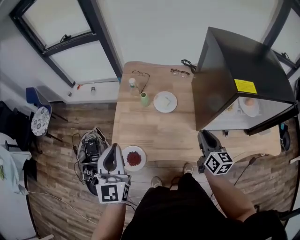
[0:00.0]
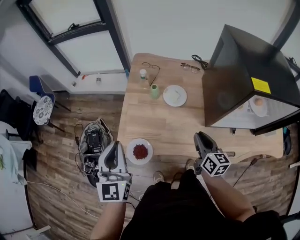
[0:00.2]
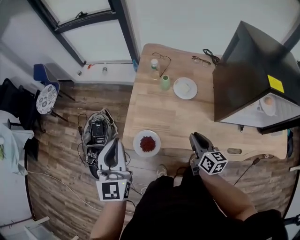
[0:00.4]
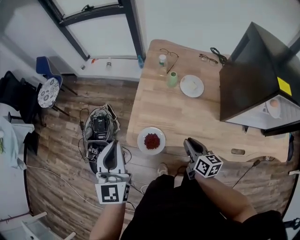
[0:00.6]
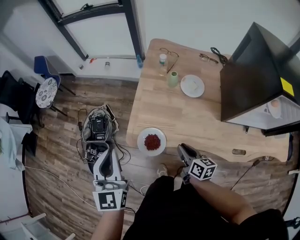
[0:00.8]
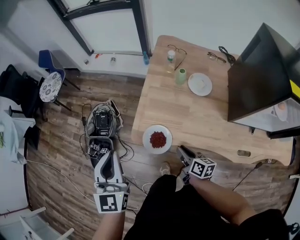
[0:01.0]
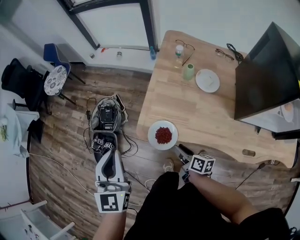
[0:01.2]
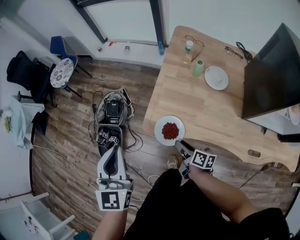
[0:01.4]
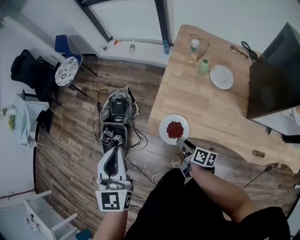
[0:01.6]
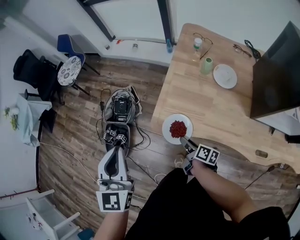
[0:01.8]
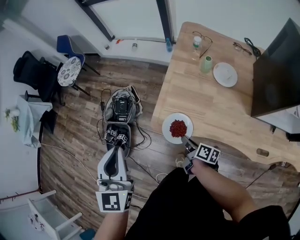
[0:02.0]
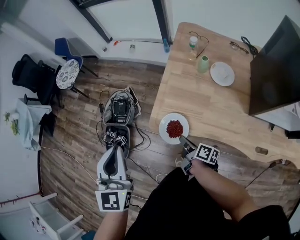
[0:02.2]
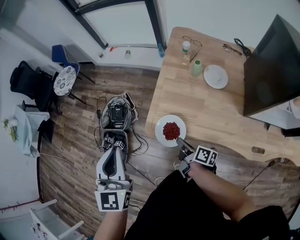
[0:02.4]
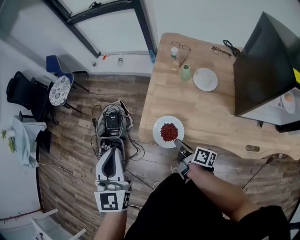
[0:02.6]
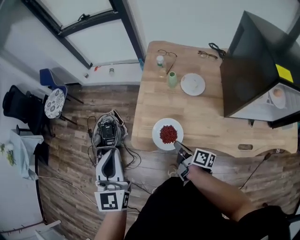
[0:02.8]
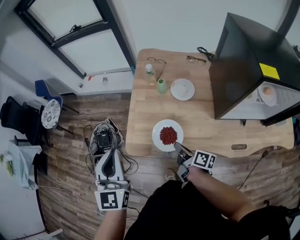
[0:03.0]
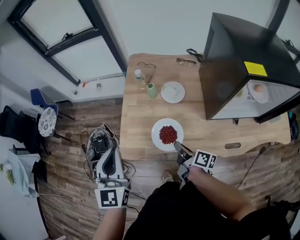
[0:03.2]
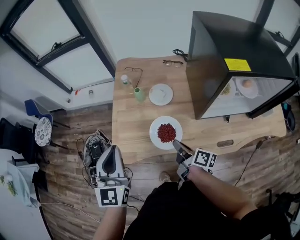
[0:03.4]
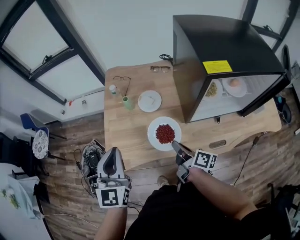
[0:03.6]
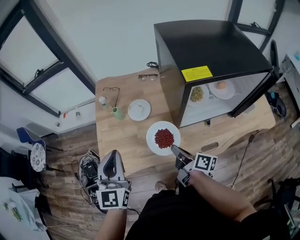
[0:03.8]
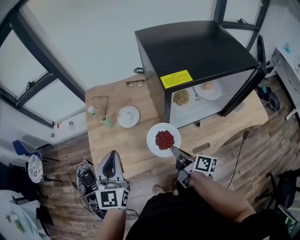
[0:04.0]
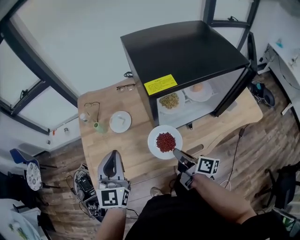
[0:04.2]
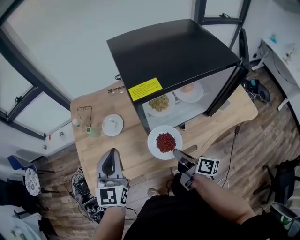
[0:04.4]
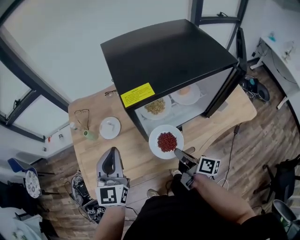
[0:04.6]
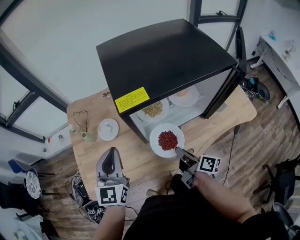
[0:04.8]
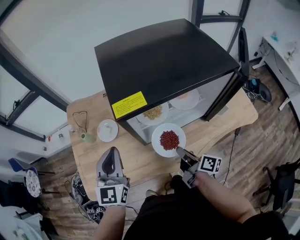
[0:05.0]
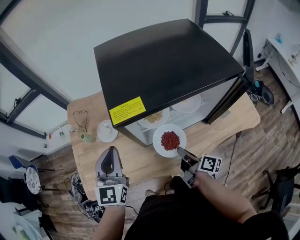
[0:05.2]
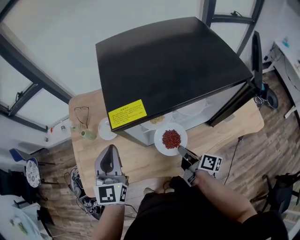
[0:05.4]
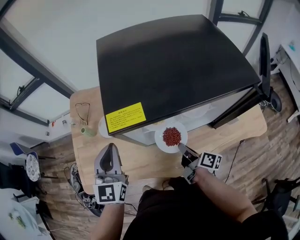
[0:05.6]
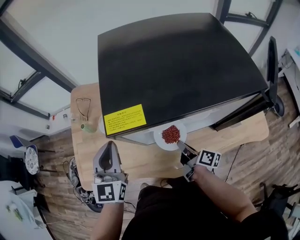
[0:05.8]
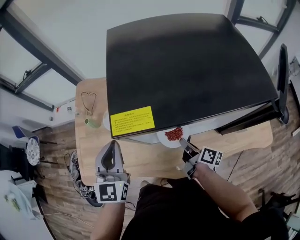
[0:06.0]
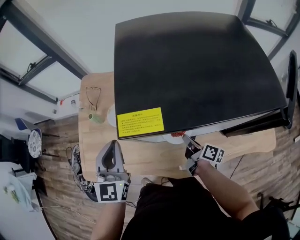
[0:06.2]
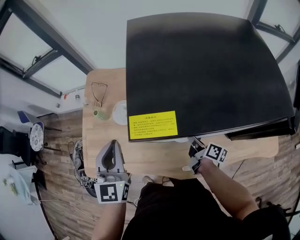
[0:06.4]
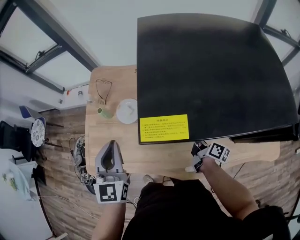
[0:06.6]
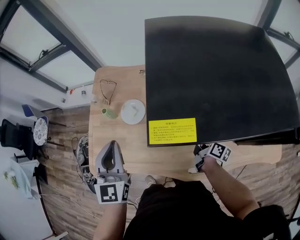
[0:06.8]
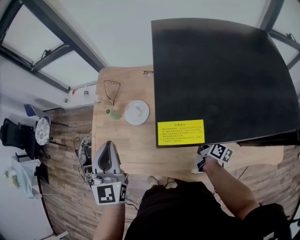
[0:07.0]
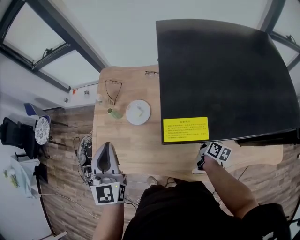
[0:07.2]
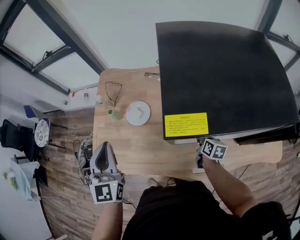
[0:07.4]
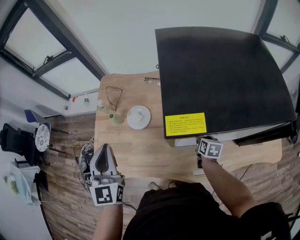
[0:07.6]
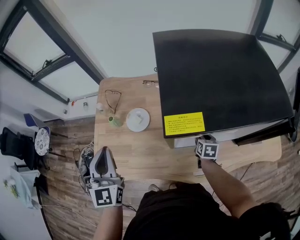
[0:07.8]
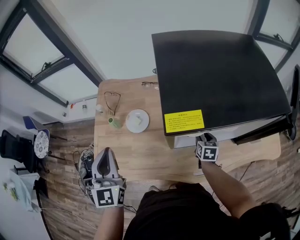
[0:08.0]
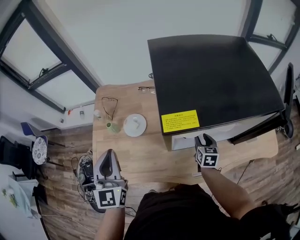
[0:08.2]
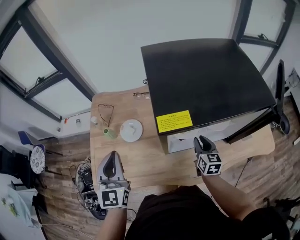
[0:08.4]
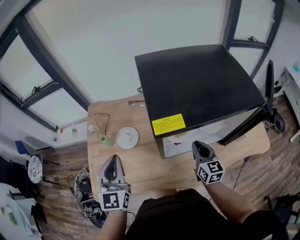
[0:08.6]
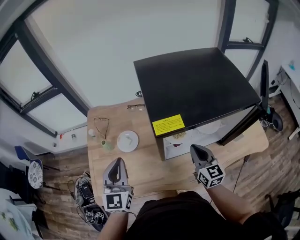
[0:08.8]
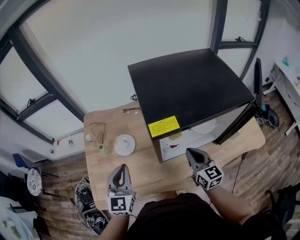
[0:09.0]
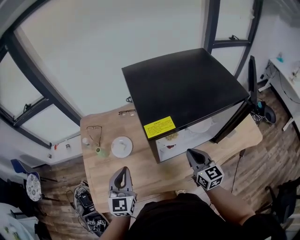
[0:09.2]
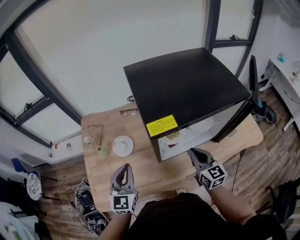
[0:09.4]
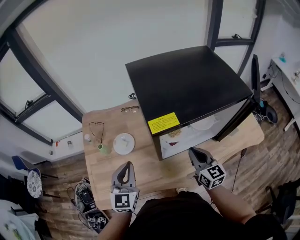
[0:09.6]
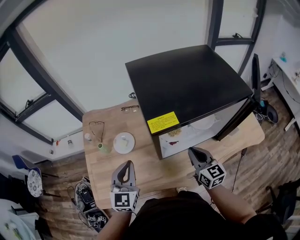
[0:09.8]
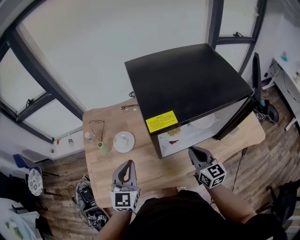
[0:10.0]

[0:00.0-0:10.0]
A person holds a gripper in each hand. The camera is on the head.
0:00.0 to 0:01.4: The right gripper moves roughly 35 cm, and changes its angle by roughly 50 degrees. Meanwhile the left gripper moves roughly 20 cm.
0:01.4 to 0:02.8: The left gripper shifts about 5 cm to the right, while the right gripper travels upward and to the right by approximately 10 cm, and closes.
0:02.8 to 0:04.2: The left gripper changes place by about 30 cm, and swivels about 30 degrees; the right gripper ends up approximately 30 cm from where it was, and rotates approximately 30 degrees.
0:04.2 to 0:05.8: The right gripper moves to the right, forward and downward, approximately 15 cm; the left gripper shifts roughly 15 cm to the right and forward.
0:05.8 to 0:07.2: The left gripper is displaced to the left by roughly 15 cm. Meanwhile the right gripper heads forward and downward, covering approximately 10 cm, and changes its angle by some 20 degrees.
0:07.2 to 0:08.6: The right gripper shifts roughly 15 cm upward, swivels roughly 40 degrees, and opens, then closes again.
0:08.6 to 0:10.0: The left gripper heads to the right and downward, covering about 5 cm. Meanwhile the right gripper changes place by roughly 5 cm.

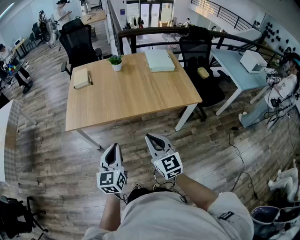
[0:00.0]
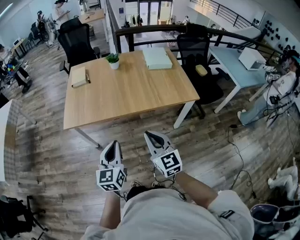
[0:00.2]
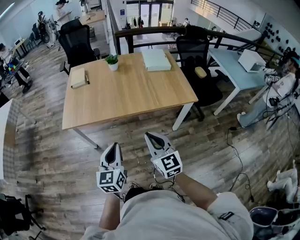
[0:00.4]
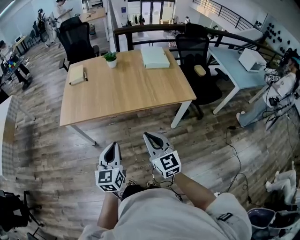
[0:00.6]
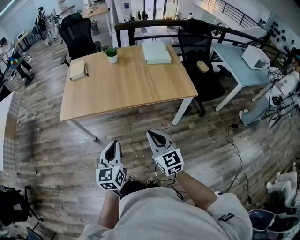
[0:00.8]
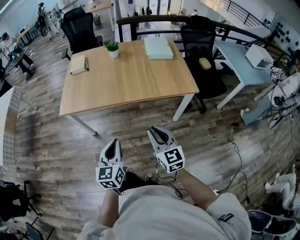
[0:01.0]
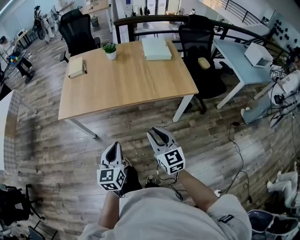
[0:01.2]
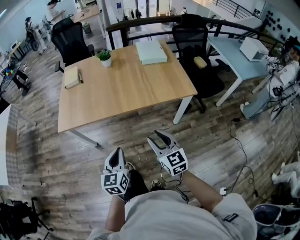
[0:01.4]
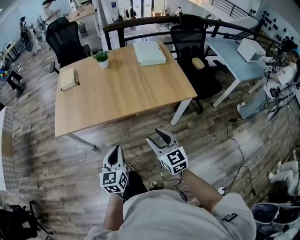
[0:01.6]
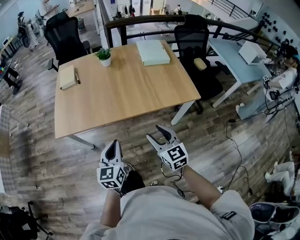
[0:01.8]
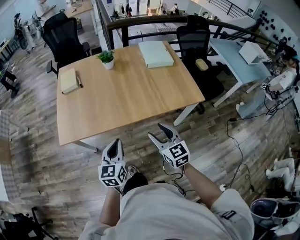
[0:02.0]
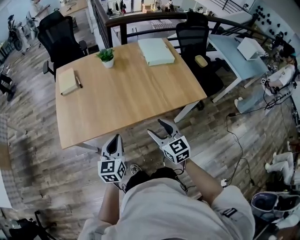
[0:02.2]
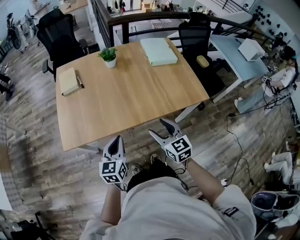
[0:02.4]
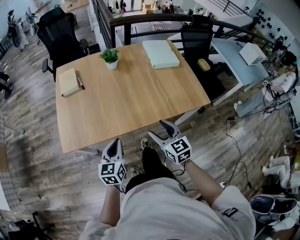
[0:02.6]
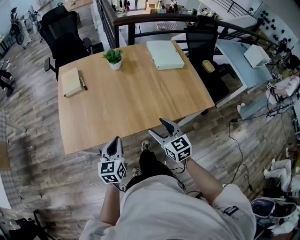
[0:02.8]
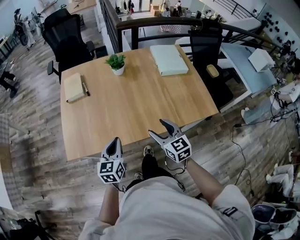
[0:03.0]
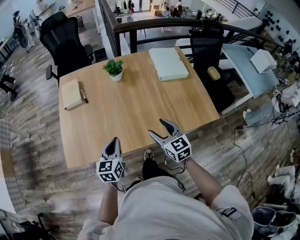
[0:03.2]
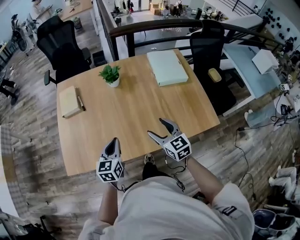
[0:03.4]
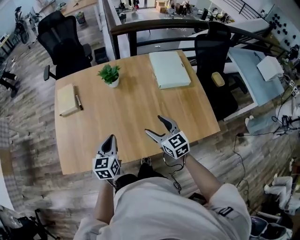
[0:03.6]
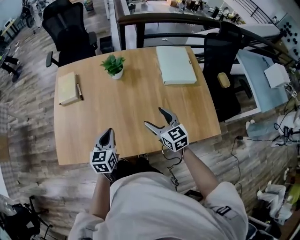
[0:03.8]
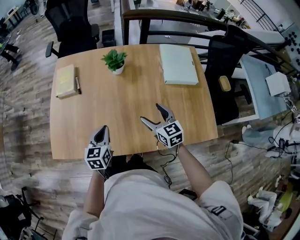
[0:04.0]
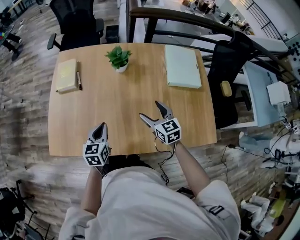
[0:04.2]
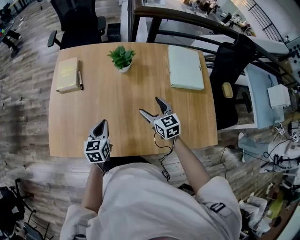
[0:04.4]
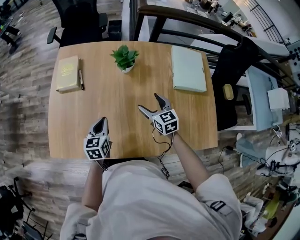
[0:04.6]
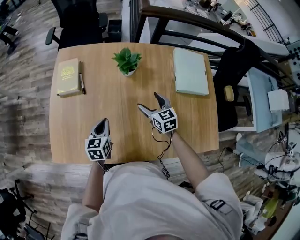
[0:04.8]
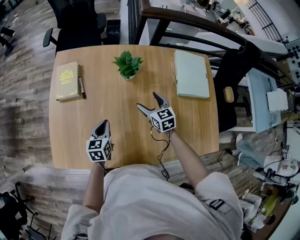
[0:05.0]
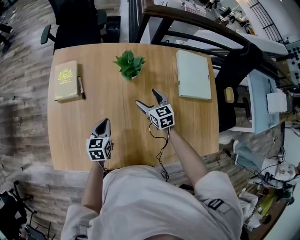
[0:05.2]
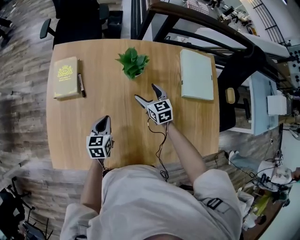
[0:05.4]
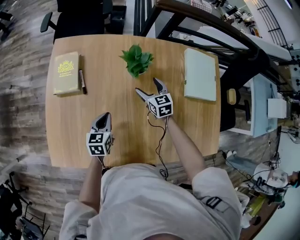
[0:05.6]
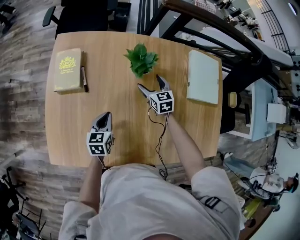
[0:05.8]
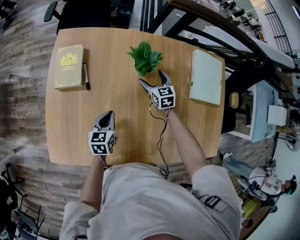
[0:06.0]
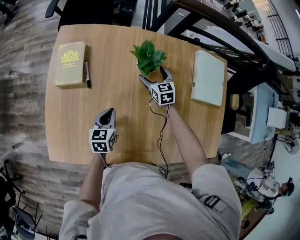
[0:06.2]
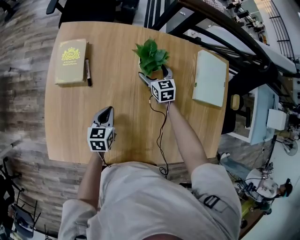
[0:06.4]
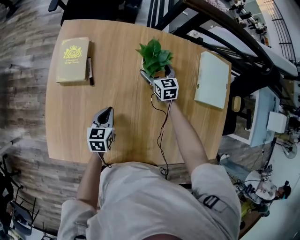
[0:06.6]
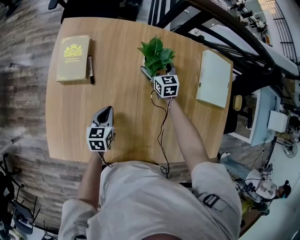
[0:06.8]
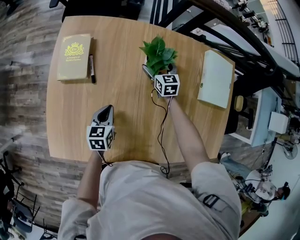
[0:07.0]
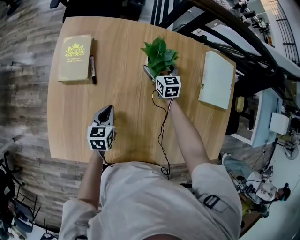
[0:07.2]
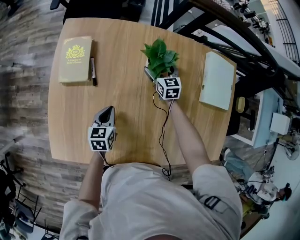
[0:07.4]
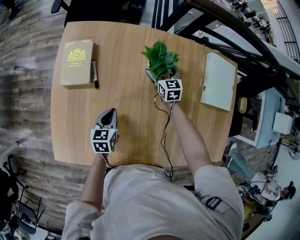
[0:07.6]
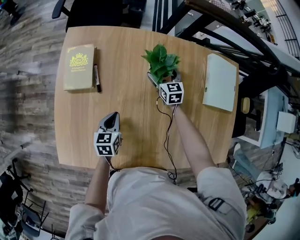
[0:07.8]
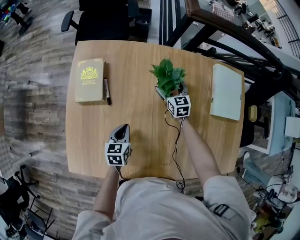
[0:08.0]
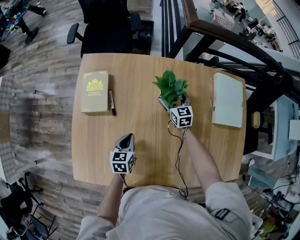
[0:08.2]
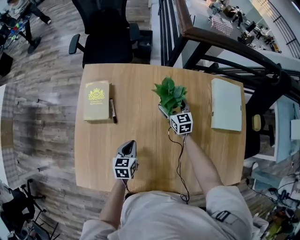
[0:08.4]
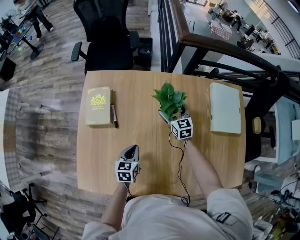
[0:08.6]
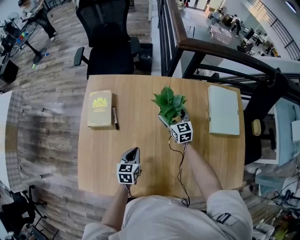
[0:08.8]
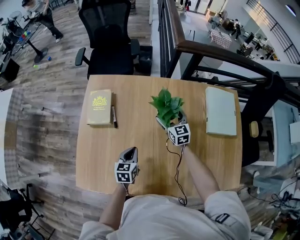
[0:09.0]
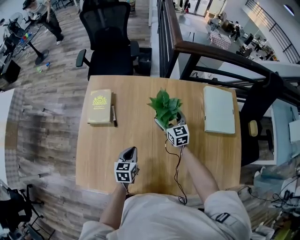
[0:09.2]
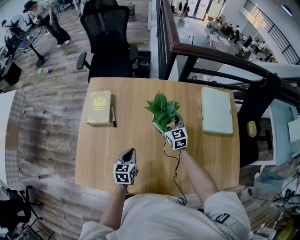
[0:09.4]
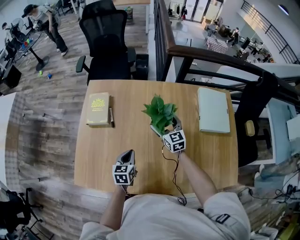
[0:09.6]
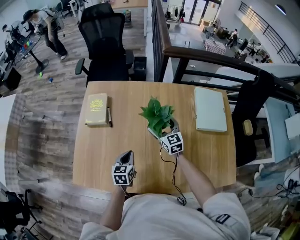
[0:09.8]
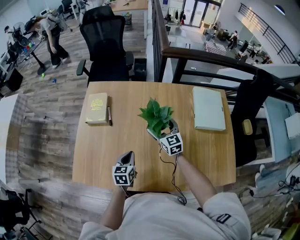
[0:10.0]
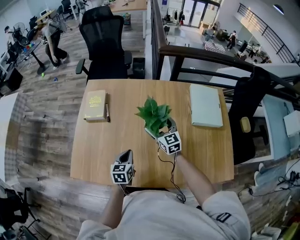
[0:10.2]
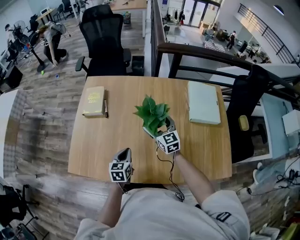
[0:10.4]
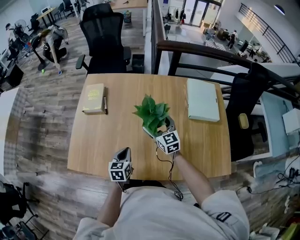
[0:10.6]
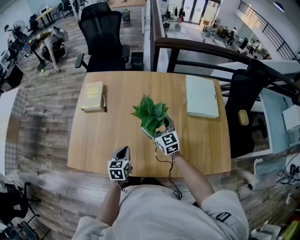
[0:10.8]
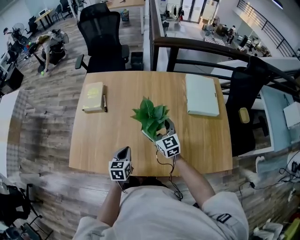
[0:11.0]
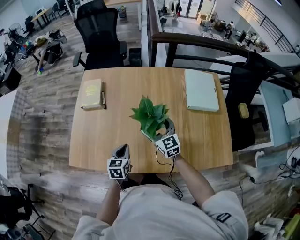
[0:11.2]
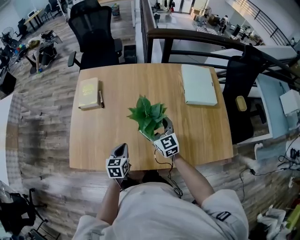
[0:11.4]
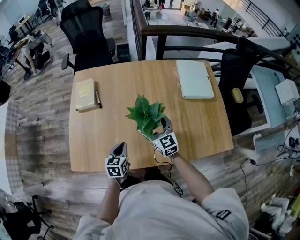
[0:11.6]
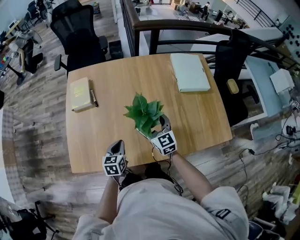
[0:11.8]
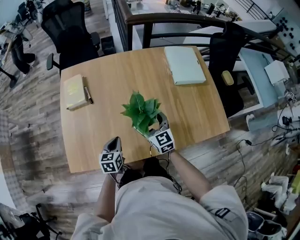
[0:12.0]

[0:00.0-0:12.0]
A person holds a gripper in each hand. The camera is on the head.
0:00.0 to 0:01.6: Both grippers travel together to the right and downward, some 10 cm. The right gripper opens its fingers.
0:01.6 to 0:03.0: The two grippers go some 25 cm forward and to the left.
0:03.0 to 0:04.4: The right gripper shifts approximately 25 cm forward. Meanwhile the left gripper heads forward and downward, covering some 20 cm.
0:04.4 to 0:06.0: The right gripper travels forward and downward by approximately 25 cm; the left gripper shifts roughly 15 cm forward and downward.
0:06.0 to 0:07.6: The right gripper travels forward by some 5 cm.
0:07.6 to 0:09.0: The left gripper moves approximately 5 cm, while the right gripper is displaced upward and backward by approximately 10 cm.
0:09.0 to 0:10.4: The right gripper shifts about 15 cm backward and upward. The left gripper is displaced backward by some 10 cm.
0:10.4 to 0:12.0: The left gripper heads to the left, covering about 5 cm; the right gripper heads backward, covering roughly 15 cm.

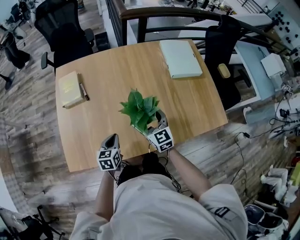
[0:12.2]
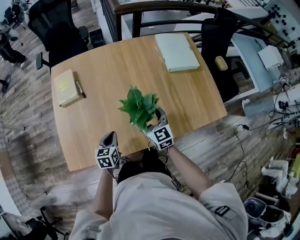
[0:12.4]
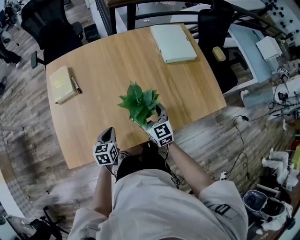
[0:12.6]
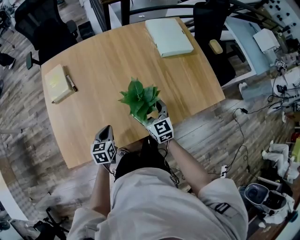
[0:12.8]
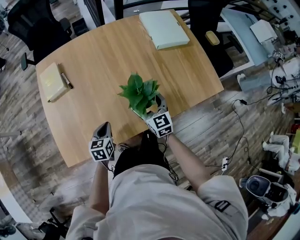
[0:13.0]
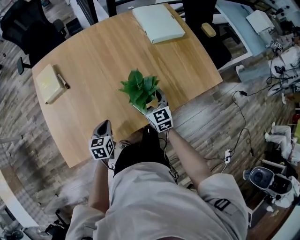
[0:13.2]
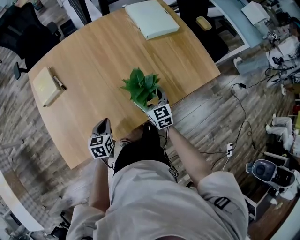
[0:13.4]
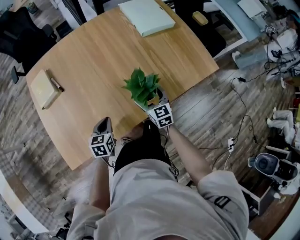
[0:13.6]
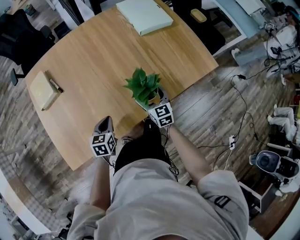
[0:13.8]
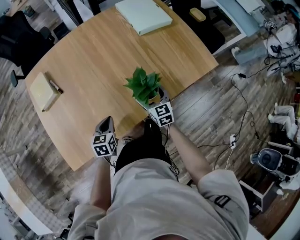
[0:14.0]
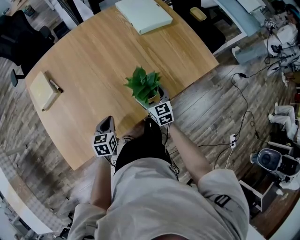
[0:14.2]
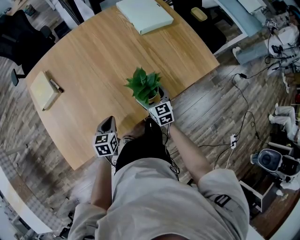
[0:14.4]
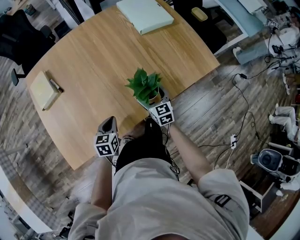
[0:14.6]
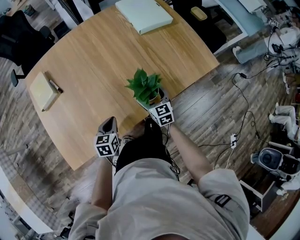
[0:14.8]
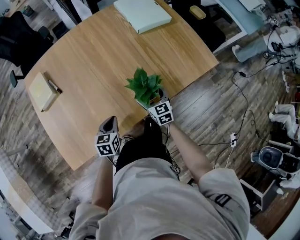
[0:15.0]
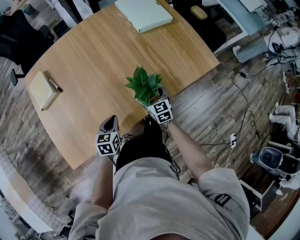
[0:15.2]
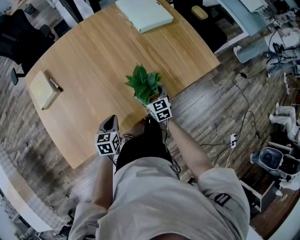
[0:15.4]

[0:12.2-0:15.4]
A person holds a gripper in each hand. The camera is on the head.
0:12.2 to 0:13.8: The left gripper ends up roughly 5 cm from where it was, while the right gripper moves downward, to the right and backward, about 20 cm, and changes its angle by about 30 degrees.
0:13.8 to 0:15.4: The grippers stay close to where they were, moving slightly.
